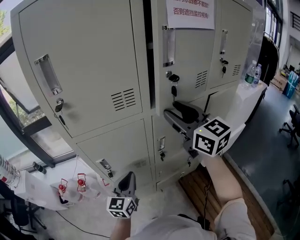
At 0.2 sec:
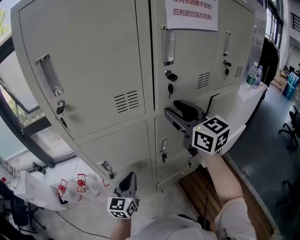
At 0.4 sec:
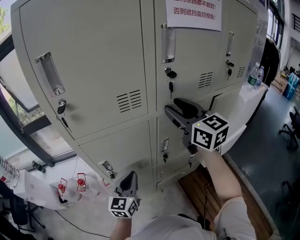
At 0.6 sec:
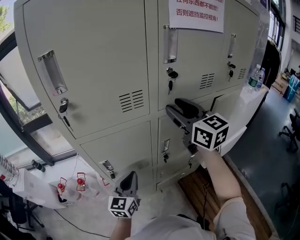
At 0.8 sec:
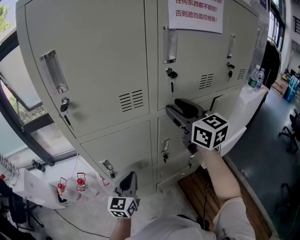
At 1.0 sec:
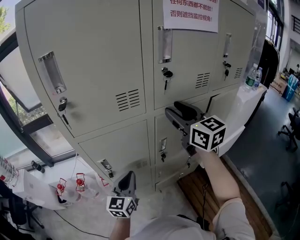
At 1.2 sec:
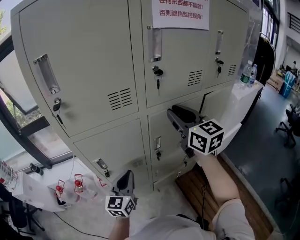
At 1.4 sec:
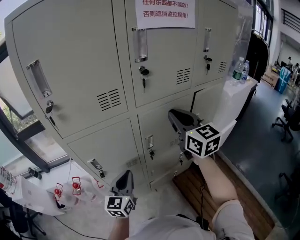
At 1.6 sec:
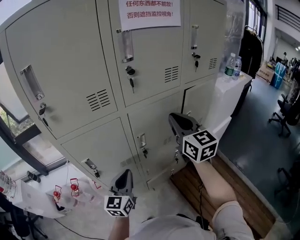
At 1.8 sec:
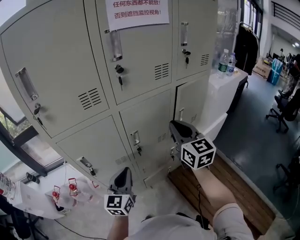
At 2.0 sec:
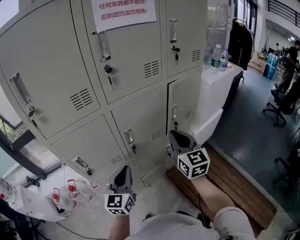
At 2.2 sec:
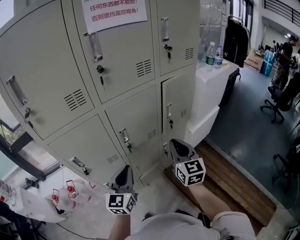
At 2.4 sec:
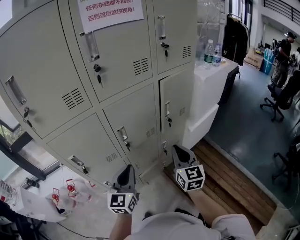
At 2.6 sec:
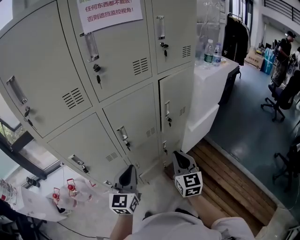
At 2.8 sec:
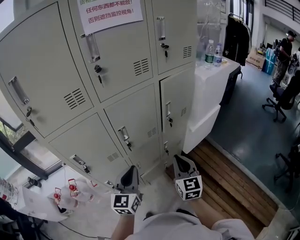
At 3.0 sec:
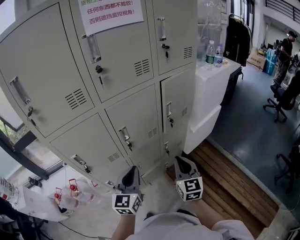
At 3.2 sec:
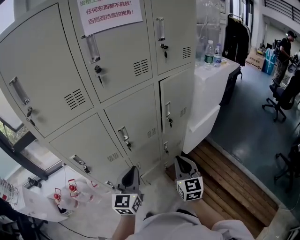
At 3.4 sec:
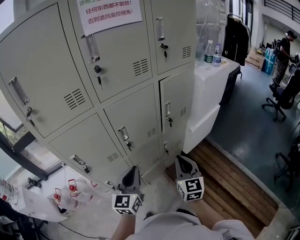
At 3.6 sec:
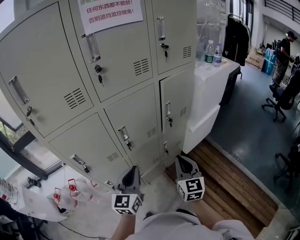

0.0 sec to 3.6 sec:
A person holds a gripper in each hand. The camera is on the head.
0.0 sec to 1.8 sec: The right gripper goes about 15 cm to the right, downward and backward, changes its angle by roughly 20 degrees, and closes up, while the left gripper shifts approximately 10 cm to the right.
1.8 sec to 3.6 sec: The right gripper heads downward, backward and to the right, covering roughly 20 cm; the left gripper shifts approximately 10 cm to the right.

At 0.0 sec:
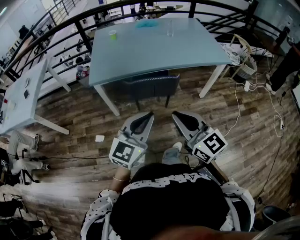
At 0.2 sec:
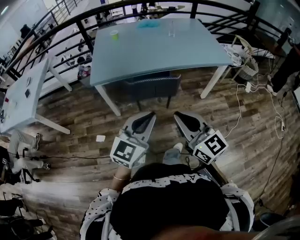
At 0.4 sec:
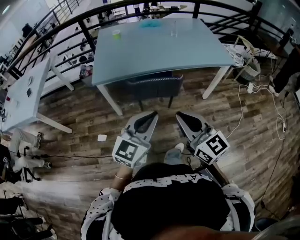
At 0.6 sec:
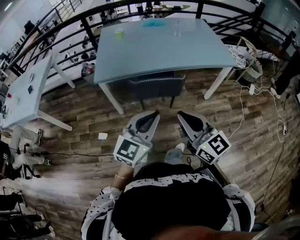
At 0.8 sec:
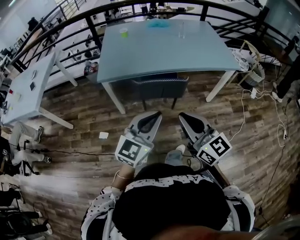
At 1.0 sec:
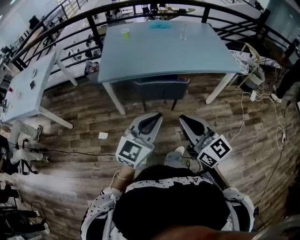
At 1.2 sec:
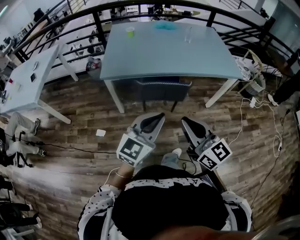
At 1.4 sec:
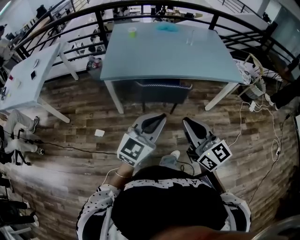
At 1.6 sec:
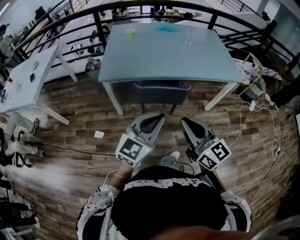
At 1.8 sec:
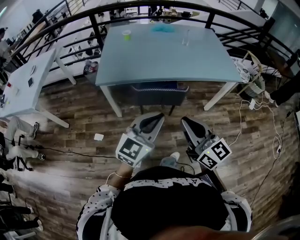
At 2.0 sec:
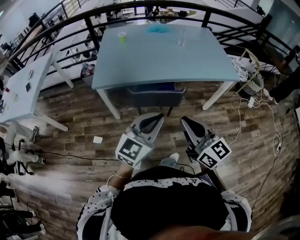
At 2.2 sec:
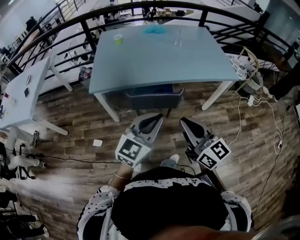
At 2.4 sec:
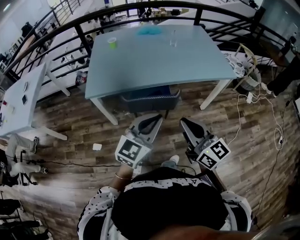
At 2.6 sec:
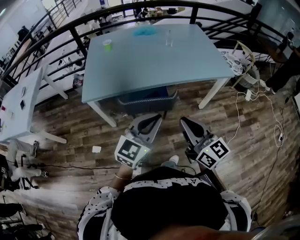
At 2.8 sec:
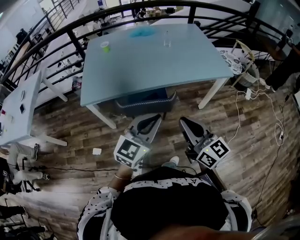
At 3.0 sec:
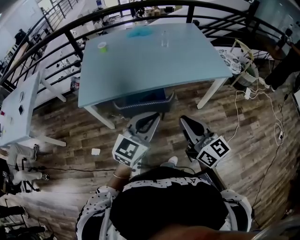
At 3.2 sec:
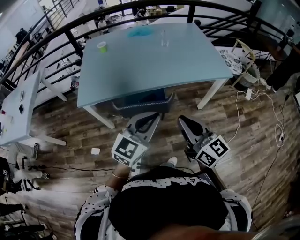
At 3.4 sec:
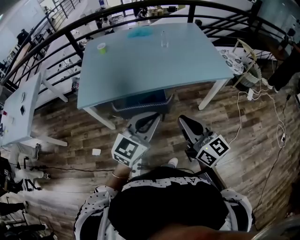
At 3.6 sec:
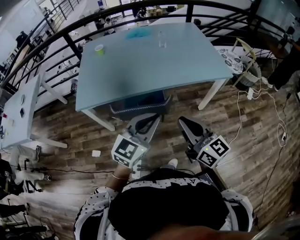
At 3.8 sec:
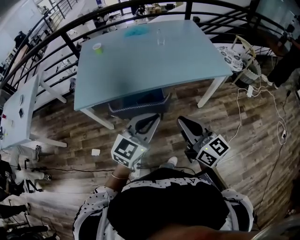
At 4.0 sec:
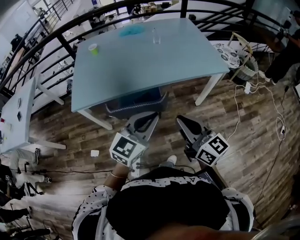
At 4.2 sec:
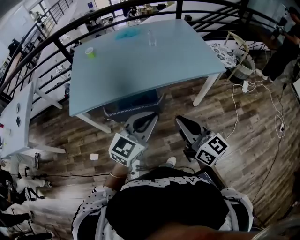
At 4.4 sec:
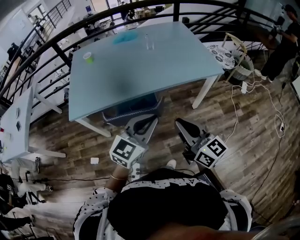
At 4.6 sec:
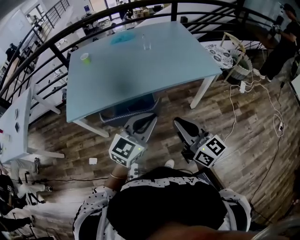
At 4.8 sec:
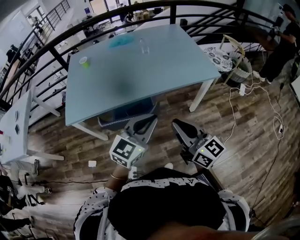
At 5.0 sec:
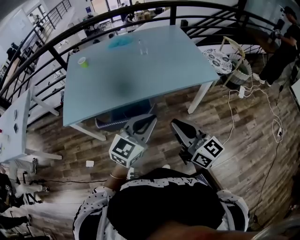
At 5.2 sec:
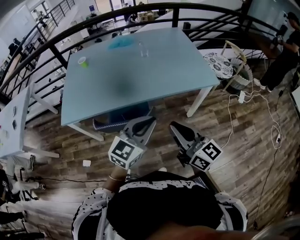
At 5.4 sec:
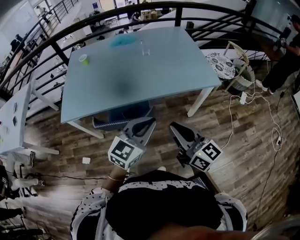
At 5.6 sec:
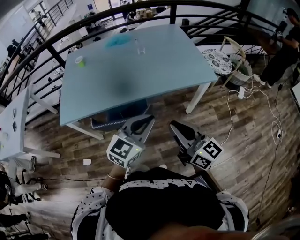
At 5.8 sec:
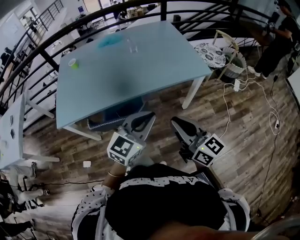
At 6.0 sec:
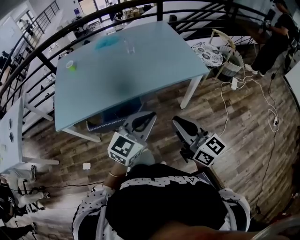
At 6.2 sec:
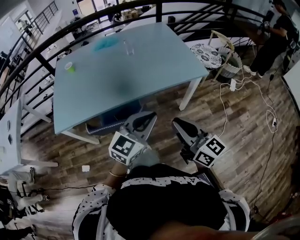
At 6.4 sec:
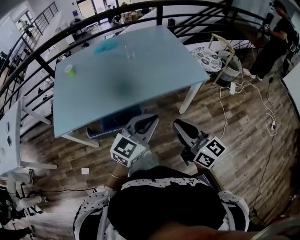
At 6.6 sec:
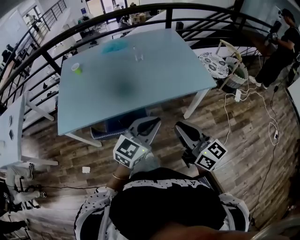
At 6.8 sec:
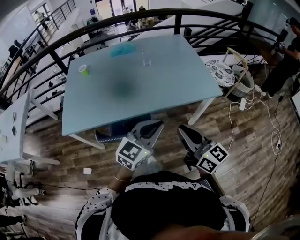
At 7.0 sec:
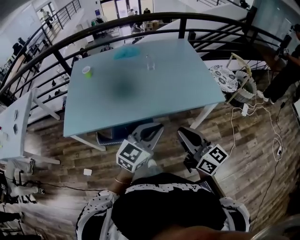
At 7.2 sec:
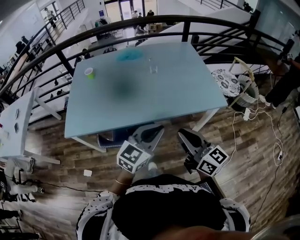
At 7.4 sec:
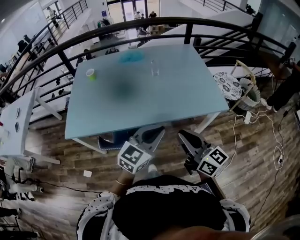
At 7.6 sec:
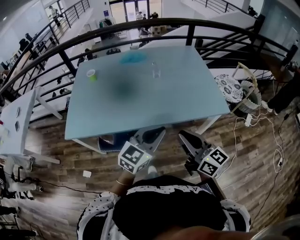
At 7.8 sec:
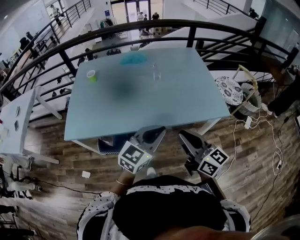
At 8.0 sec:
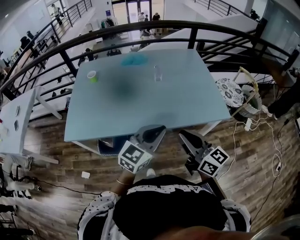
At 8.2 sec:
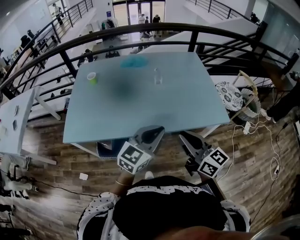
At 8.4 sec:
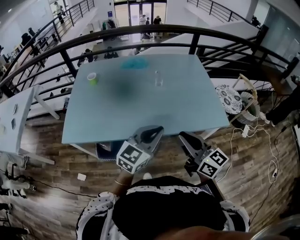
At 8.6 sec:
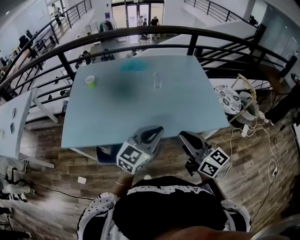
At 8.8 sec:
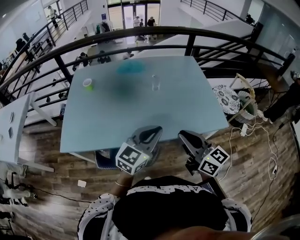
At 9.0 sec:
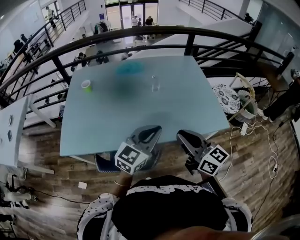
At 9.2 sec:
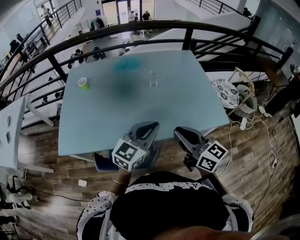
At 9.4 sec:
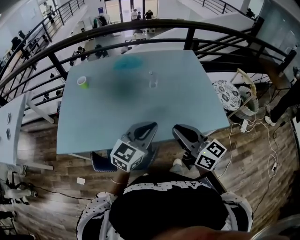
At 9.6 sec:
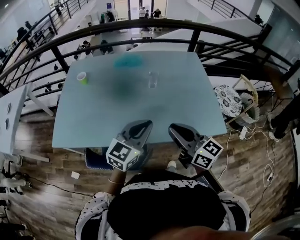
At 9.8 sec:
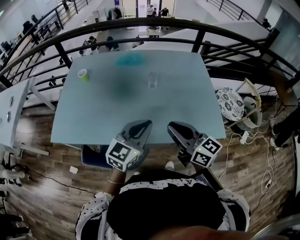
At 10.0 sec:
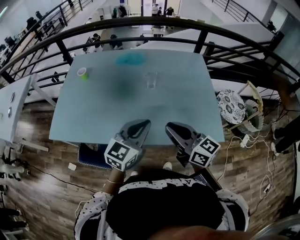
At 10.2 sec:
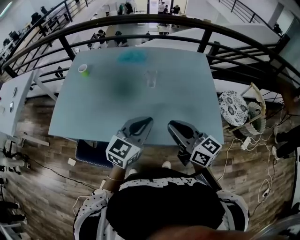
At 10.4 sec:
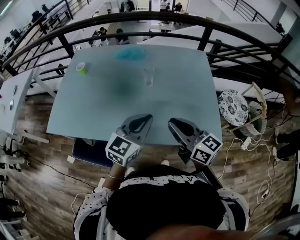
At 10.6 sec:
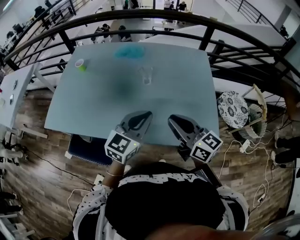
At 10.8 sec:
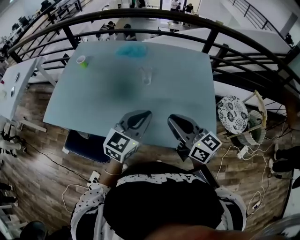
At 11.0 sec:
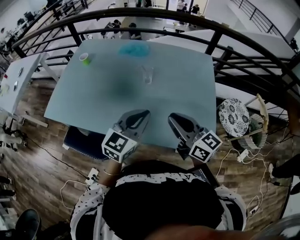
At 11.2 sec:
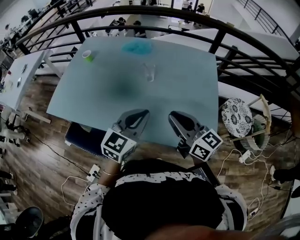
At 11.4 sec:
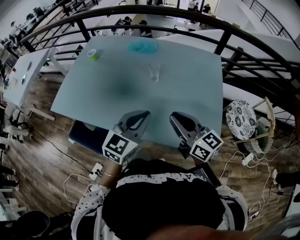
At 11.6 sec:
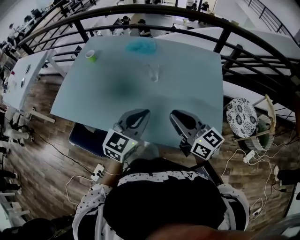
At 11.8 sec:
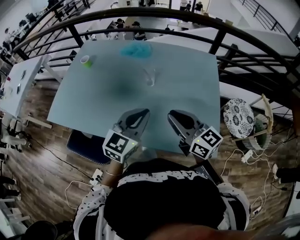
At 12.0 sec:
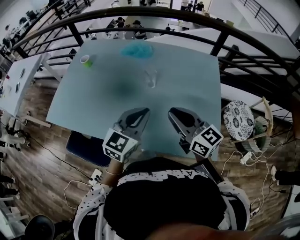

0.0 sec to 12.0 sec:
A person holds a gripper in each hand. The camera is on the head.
0.0 sec to 1.6 sec: The grippers make only small movements.
1.6 sec to 3.0 sec: The right gripper shifts roughly 15 cm to the right and forward, while the left gripper is displaced forward and to the right by about 15 cm.
3.0 sec to 4.4 sec: The grippers both shift to the right by some 5 cm.
4.4 sec to 6.0 sec: The left gripper travels to the right and forward by some 10 cm. Meanwhile the right gripper goes roughly 10 cm to the right.
6.0 sec to 7.6 sec: The left gripper heads forward, covering roughly 10 cm, while the right gripper moves forward and to the left, about 15 cm.
7.6 sec to 9.0 sec: Both grippers travel together forward, approximately 10 cm.
9.0 sec to 10.4 sec: Both grippers move to the right and forward, about 15 cm.
10.4 sec to 12.0 sec: The right gripper heads forward and to the right, covering roughly 10 cm. Meanwhile the left gripper moves to the right and forward, roughly 5 cm.

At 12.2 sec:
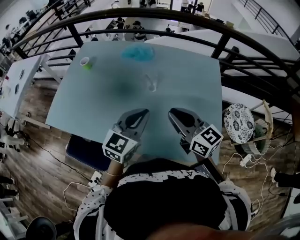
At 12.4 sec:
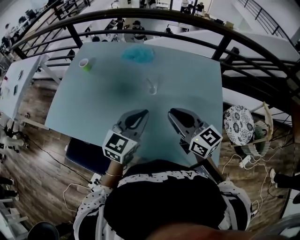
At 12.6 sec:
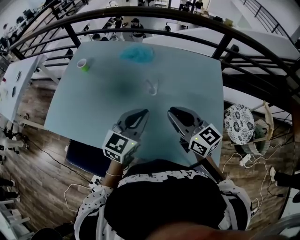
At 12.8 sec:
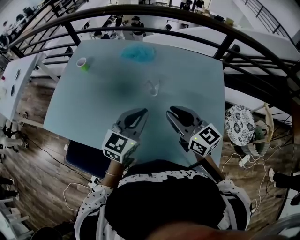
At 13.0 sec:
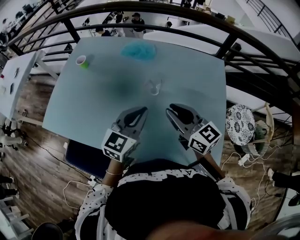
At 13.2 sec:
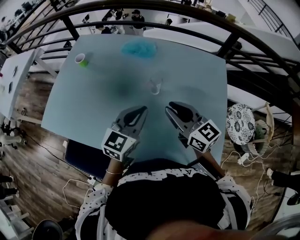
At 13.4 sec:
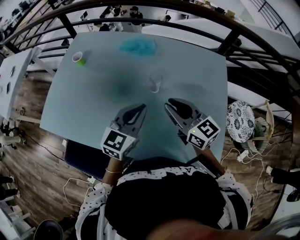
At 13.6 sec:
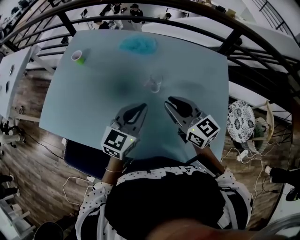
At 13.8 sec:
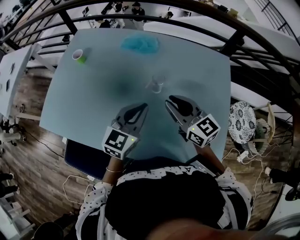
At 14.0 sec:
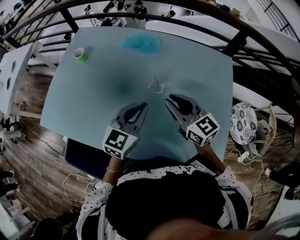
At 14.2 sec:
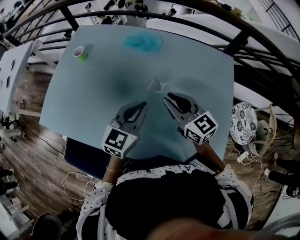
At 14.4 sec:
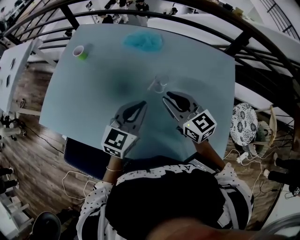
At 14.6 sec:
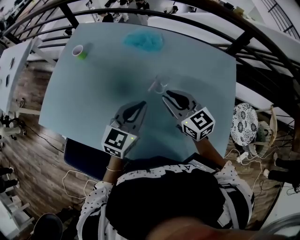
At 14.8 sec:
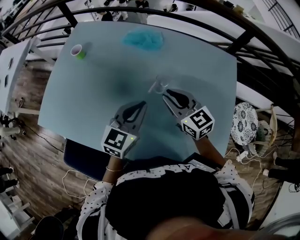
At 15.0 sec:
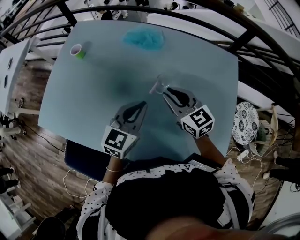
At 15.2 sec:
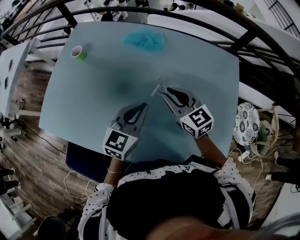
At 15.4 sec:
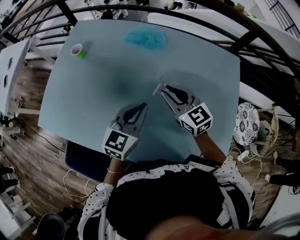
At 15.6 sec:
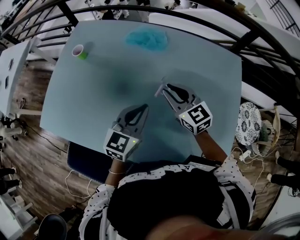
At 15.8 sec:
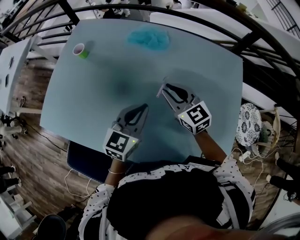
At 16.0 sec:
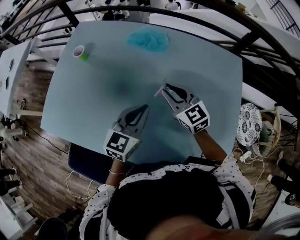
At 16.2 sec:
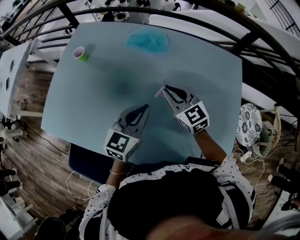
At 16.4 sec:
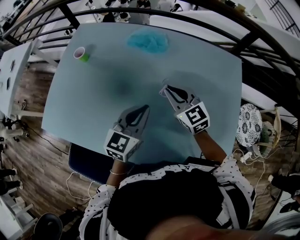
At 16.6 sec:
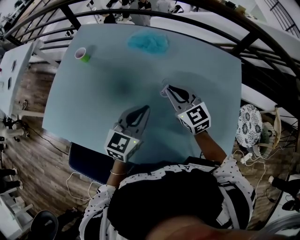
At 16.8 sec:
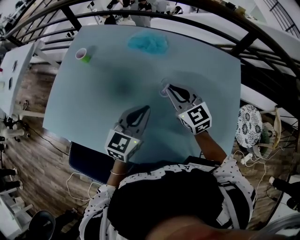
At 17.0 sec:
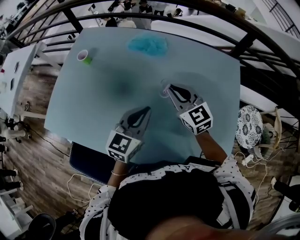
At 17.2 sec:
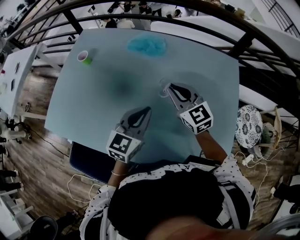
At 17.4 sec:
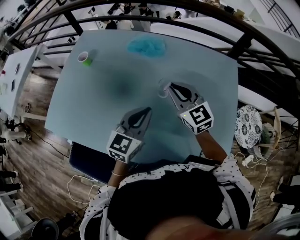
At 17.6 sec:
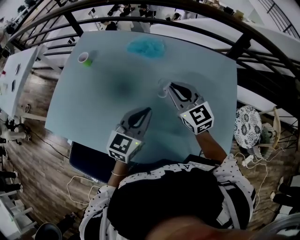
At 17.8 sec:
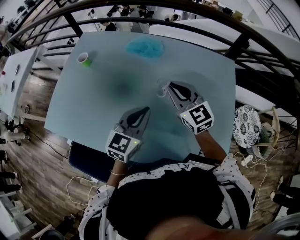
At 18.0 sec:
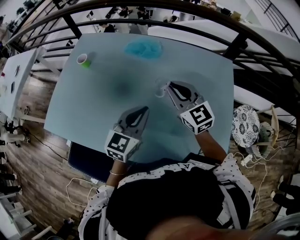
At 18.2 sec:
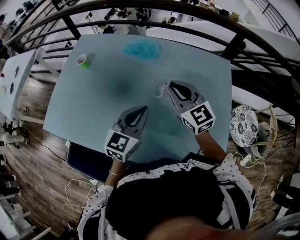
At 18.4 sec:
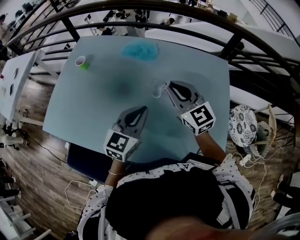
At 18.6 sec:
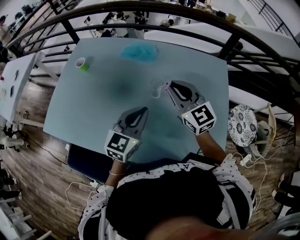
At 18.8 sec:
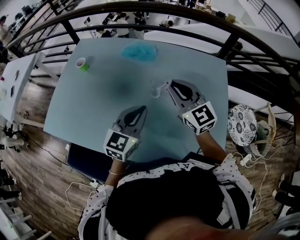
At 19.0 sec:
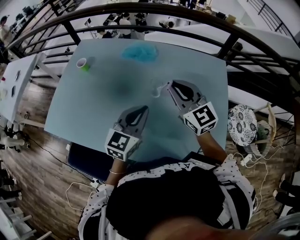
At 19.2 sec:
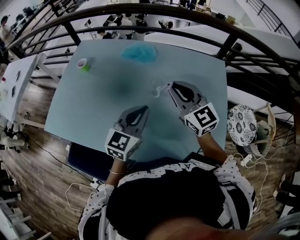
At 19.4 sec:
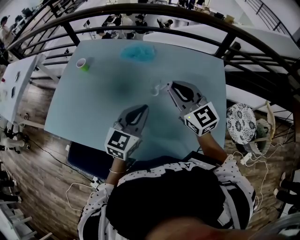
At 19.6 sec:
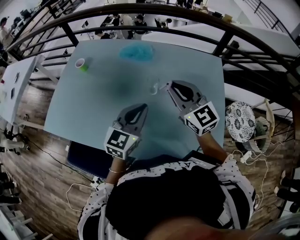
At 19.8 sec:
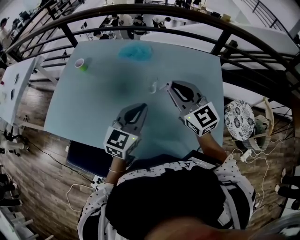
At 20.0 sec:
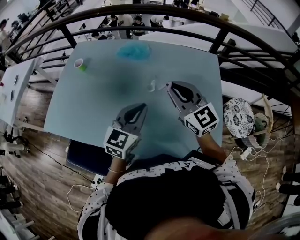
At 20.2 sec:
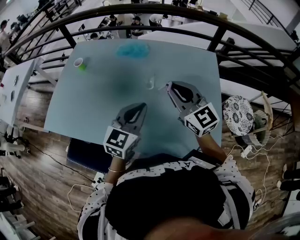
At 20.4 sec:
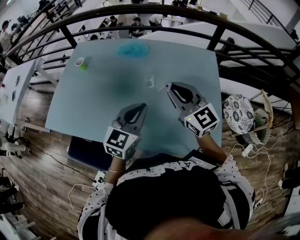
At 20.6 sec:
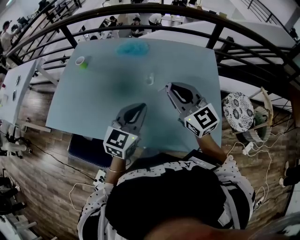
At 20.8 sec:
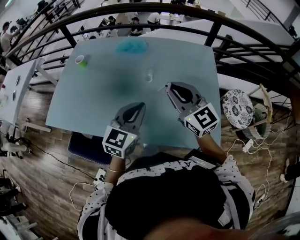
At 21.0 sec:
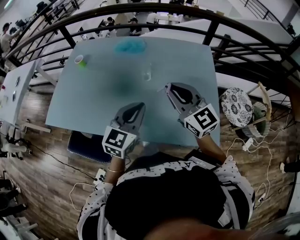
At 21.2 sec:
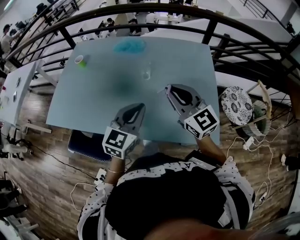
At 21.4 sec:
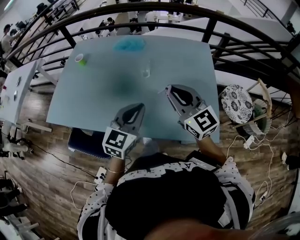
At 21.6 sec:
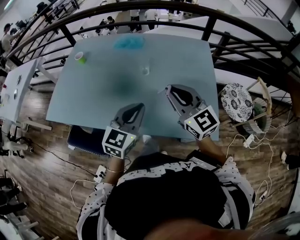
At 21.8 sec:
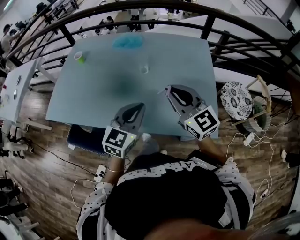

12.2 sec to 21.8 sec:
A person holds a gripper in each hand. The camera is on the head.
12.2 sec to 13.8 sec: Both grippers move forward, some 15 cm.
13.8 sec to 15.4 sec: The left gripper moves approximately 5 cm, while the right gripper moves forward and downward, roughly 10 cm.
15.4 sec to 17.0 sec: There are only small adjustments of the grippers.
17.0 sec to 18.6 sec: The right gripper heads upward, covering approximately 5 cm.
18.6 sec to 20.2 sec: The two grippers go approximately 10 cm backward.
20.2 sec to 21.8 sec: Both grippers move backward, approximately 15 cm.
